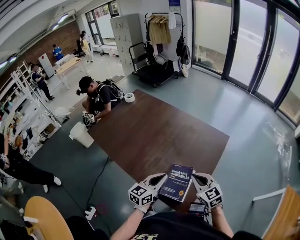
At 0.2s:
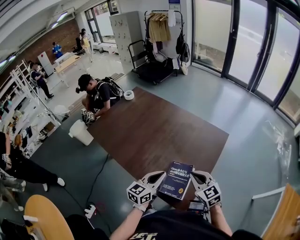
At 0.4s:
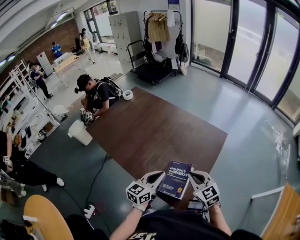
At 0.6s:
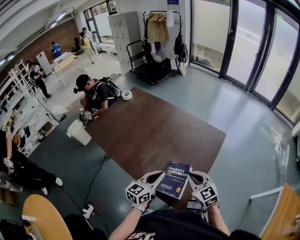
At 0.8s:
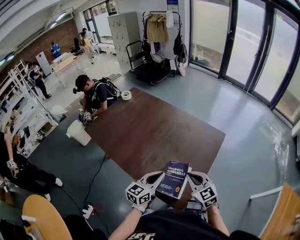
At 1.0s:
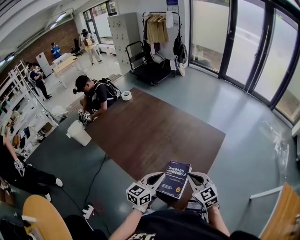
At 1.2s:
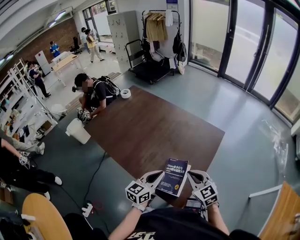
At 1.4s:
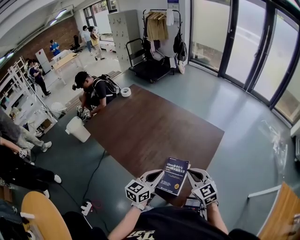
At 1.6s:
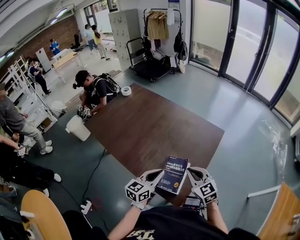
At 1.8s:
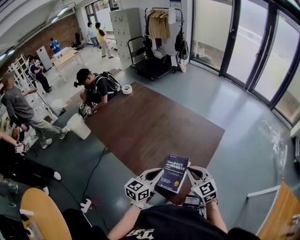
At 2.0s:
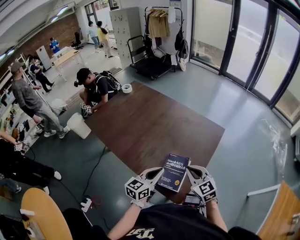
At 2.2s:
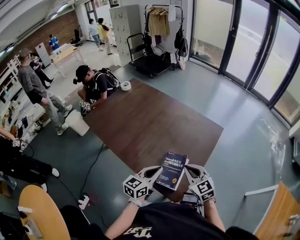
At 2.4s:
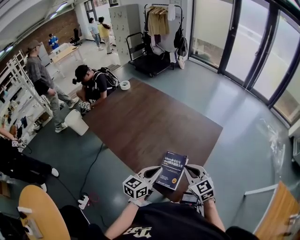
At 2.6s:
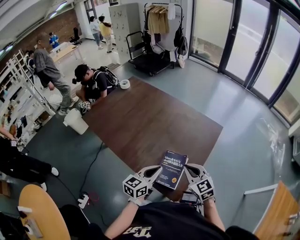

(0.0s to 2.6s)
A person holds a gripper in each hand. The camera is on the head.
0.0s - 2.6s: There are only small adjustments of the grippers.

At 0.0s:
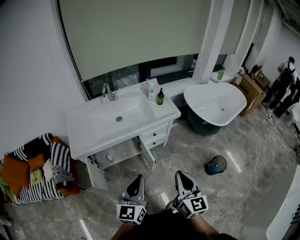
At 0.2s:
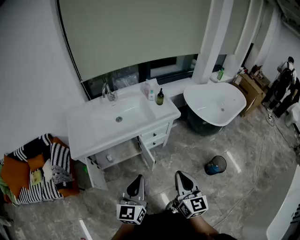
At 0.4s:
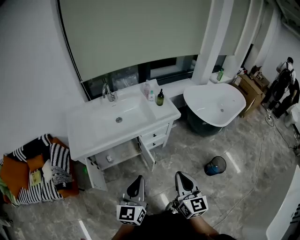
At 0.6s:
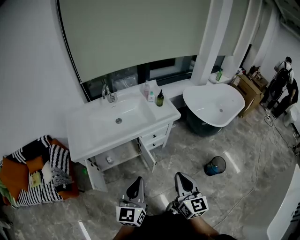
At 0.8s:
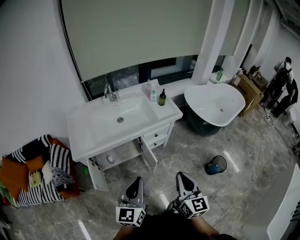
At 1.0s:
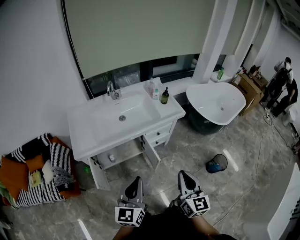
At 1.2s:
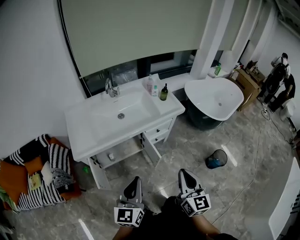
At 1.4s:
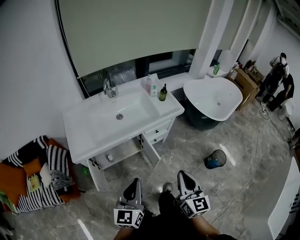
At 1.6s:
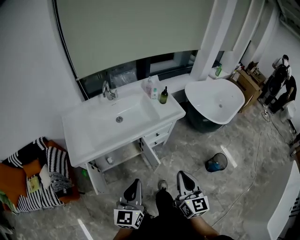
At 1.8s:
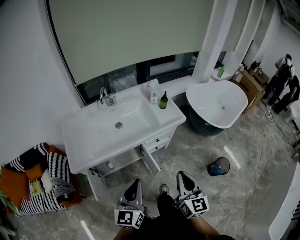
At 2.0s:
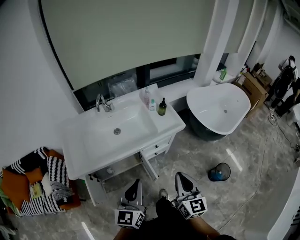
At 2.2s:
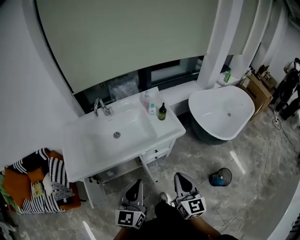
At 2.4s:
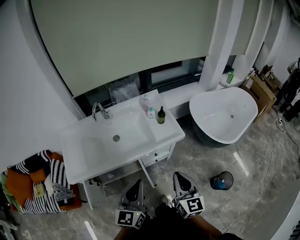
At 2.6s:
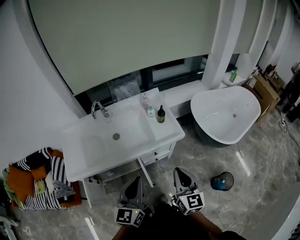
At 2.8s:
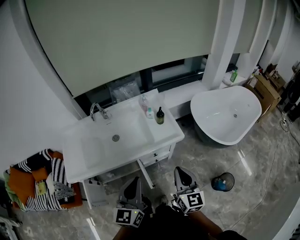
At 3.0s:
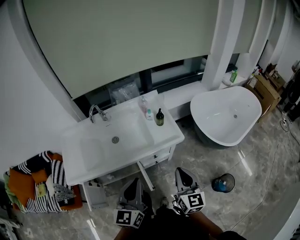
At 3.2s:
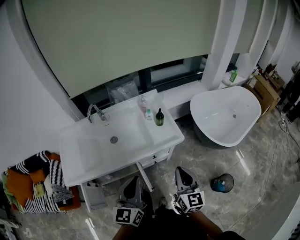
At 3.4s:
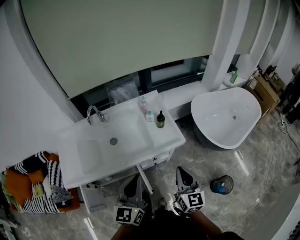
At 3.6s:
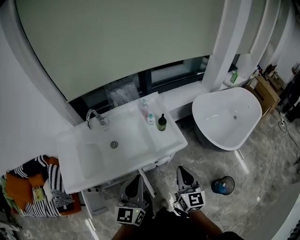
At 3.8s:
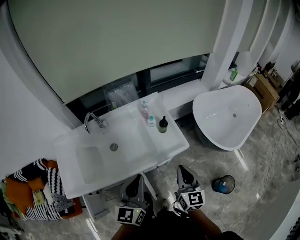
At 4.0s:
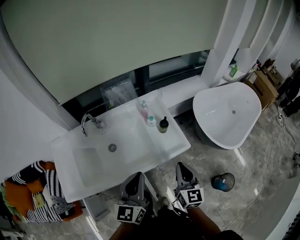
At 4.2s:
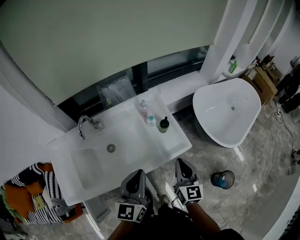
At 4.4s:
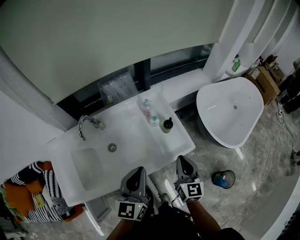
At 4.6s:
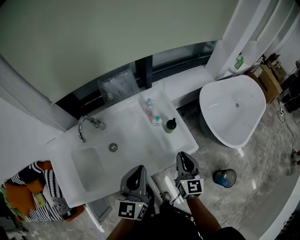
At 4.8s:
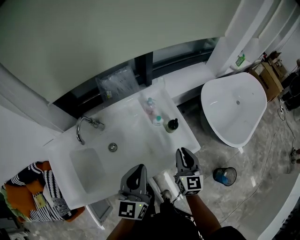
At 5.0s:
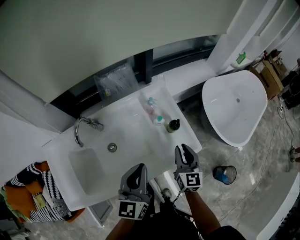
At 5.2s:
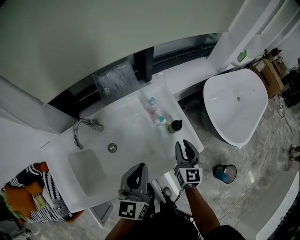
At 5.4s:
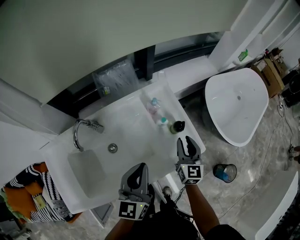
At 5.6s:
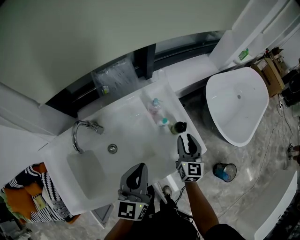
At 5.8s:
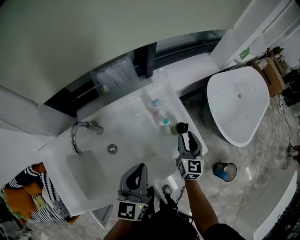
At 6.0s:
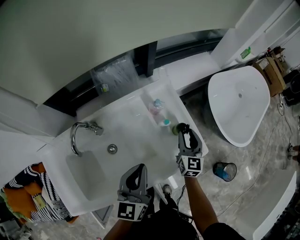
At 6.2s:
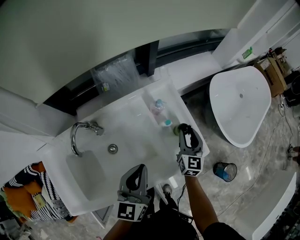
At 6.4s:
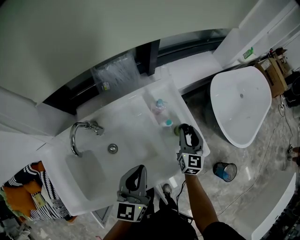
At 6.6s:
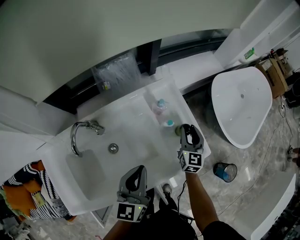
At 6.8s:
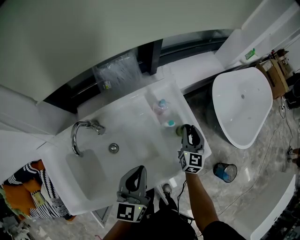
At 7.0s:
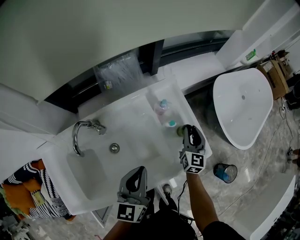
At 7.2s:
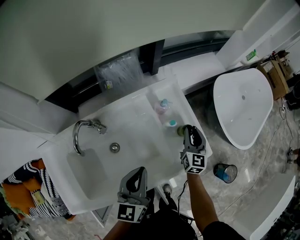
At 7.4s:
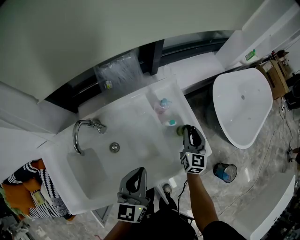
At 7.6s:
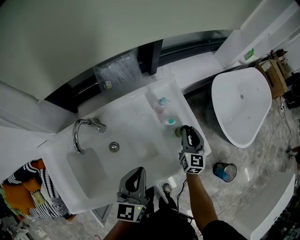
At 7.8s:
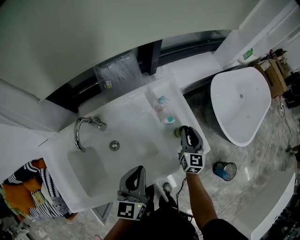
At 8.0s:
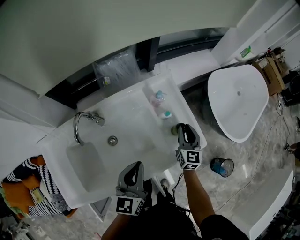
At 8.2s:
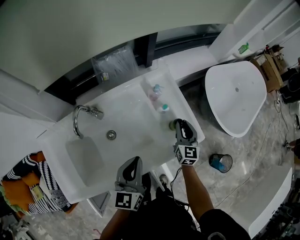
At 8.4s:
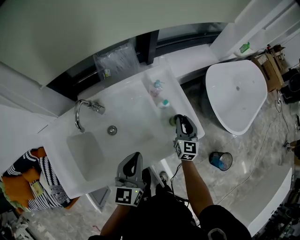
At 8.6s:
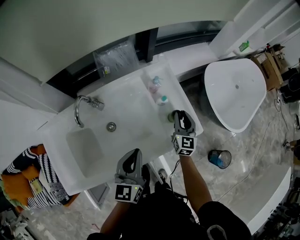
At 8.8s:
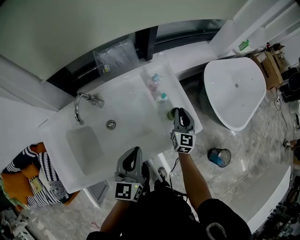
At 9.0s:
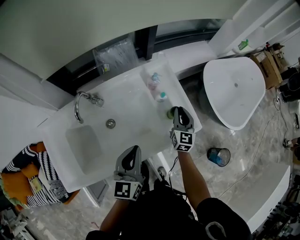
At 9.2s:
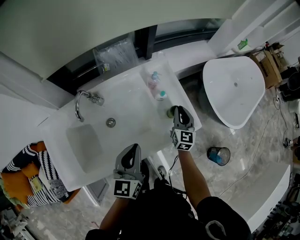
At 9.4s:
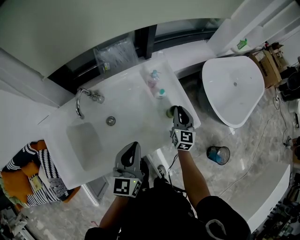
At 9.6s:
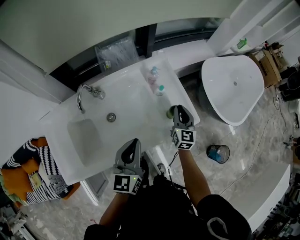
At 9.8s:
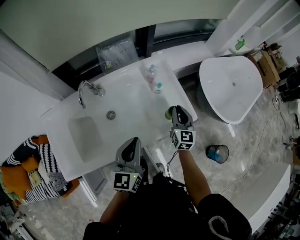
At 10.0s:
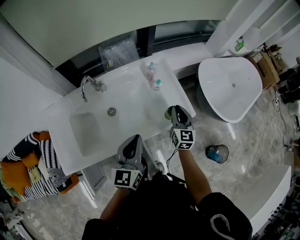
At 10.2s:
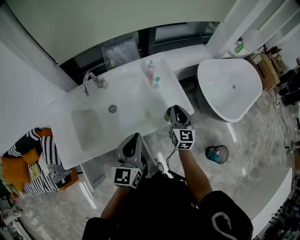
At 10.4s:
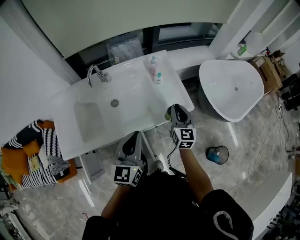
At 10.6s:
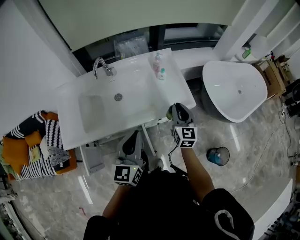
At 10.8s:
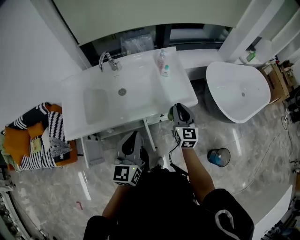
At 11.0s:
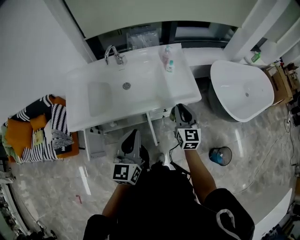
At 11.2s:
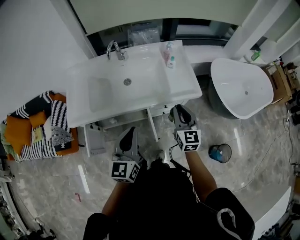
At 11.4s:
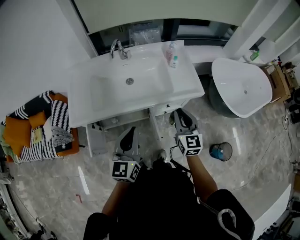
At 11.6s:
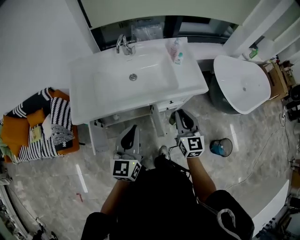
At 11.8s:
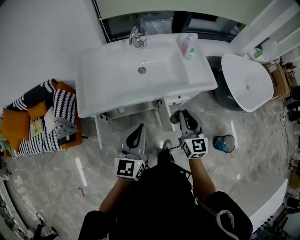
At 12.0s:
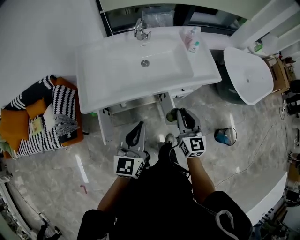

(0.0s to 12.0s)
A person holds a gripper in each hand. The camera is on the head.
0.0s - 1.6s: The two grippers go about 10 cm to the left.
1.6s - 3.0s: Both grippers travel together forward and to the right, about 25 cm.
3.0s - 4.4s: The grippers both shift forward by about 20 cm.
4.4s - 6.0s: The left gripper goes about 15 cm forward, downward and to the left; the right gripper shifts roughly 20 cm forward and downward, and opens up.
6.0s - 7.6s: The grippers make only small movements.
7.6s - 9.0s: The left gripper goes about 5 cm backward.
9.0s - 10.4s: The left gripper heads backward, upward and to the right, covering approximately 15 cm. The right gripper moves backward and upward, some 20 cm.
10.4s - 12.0s: The right gripper heads backward and to the left, covering about 30 cm; the left gripper heads to the left and backward, covering some 25 cm.

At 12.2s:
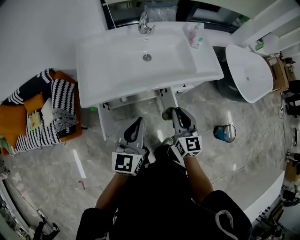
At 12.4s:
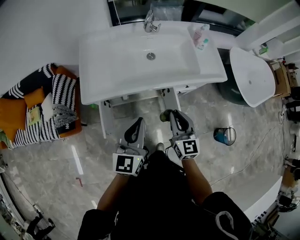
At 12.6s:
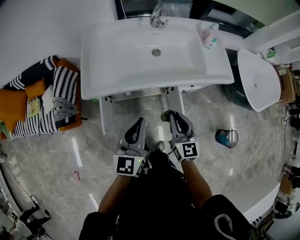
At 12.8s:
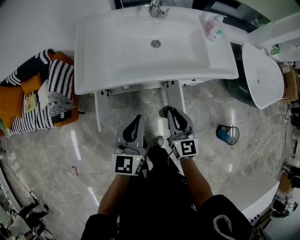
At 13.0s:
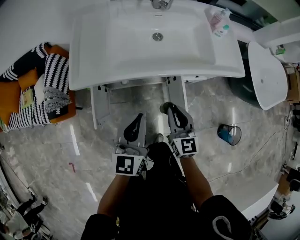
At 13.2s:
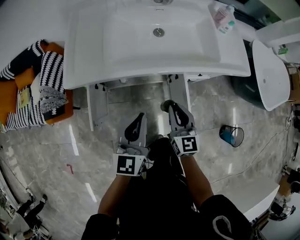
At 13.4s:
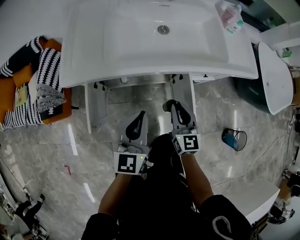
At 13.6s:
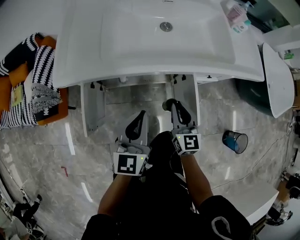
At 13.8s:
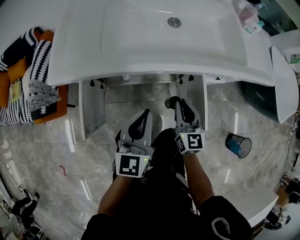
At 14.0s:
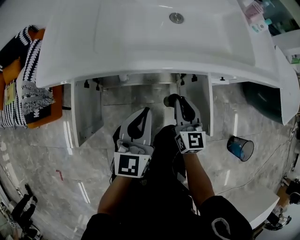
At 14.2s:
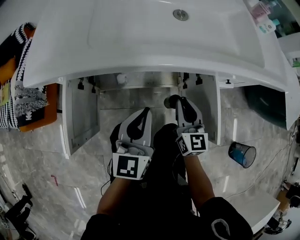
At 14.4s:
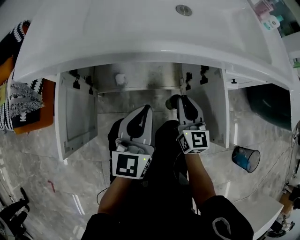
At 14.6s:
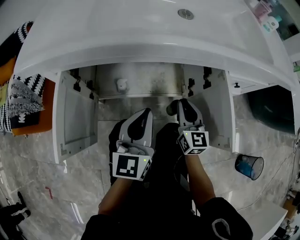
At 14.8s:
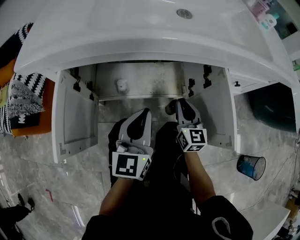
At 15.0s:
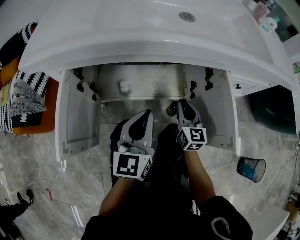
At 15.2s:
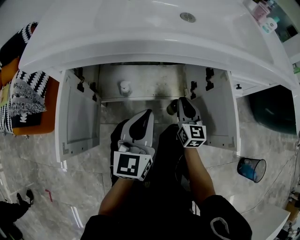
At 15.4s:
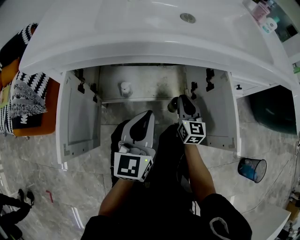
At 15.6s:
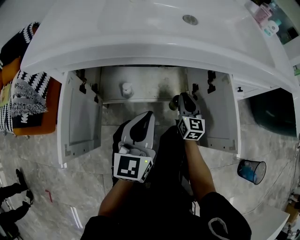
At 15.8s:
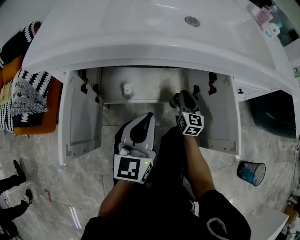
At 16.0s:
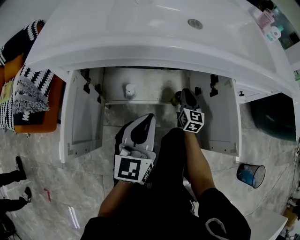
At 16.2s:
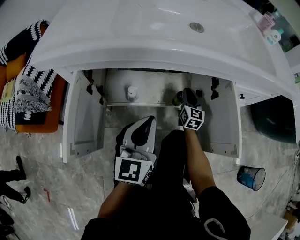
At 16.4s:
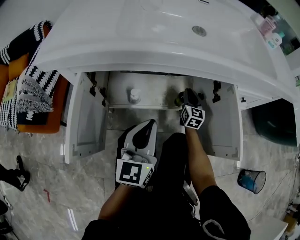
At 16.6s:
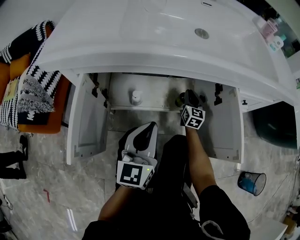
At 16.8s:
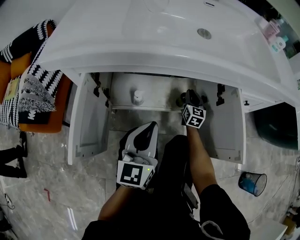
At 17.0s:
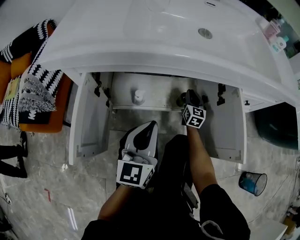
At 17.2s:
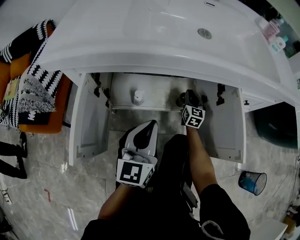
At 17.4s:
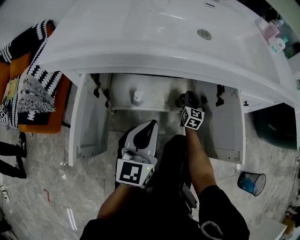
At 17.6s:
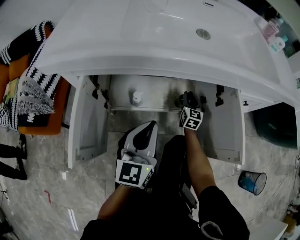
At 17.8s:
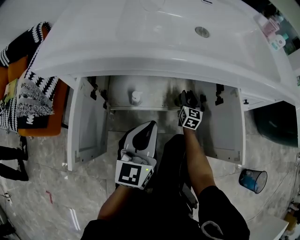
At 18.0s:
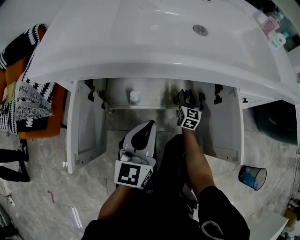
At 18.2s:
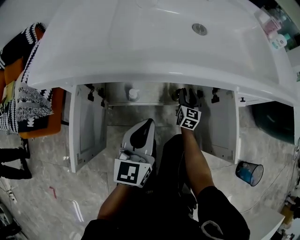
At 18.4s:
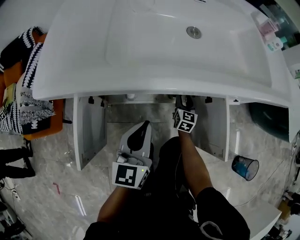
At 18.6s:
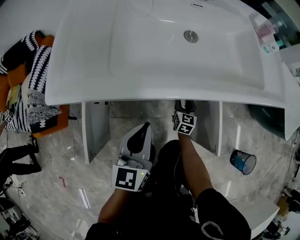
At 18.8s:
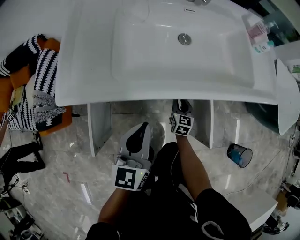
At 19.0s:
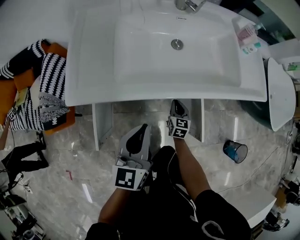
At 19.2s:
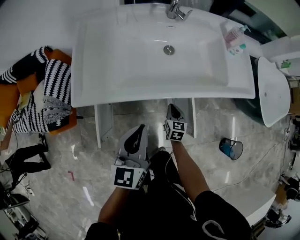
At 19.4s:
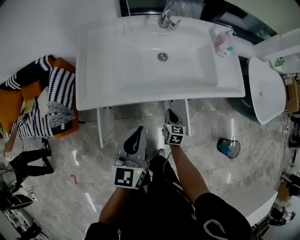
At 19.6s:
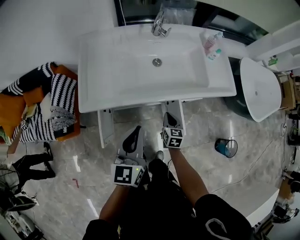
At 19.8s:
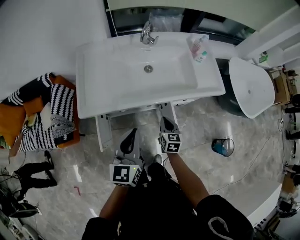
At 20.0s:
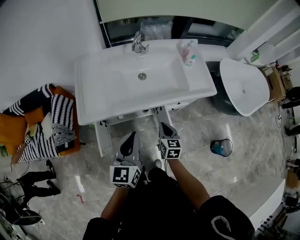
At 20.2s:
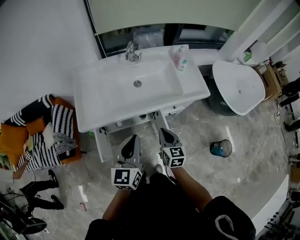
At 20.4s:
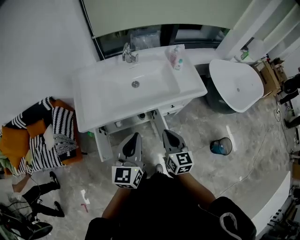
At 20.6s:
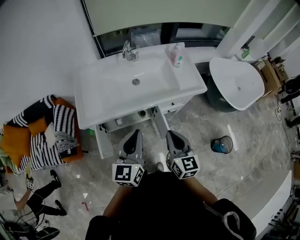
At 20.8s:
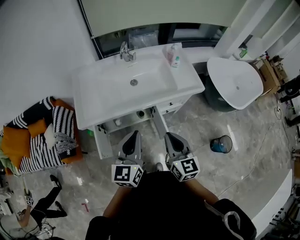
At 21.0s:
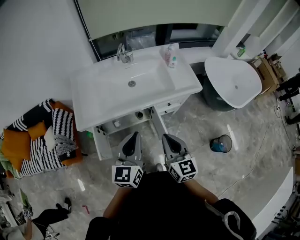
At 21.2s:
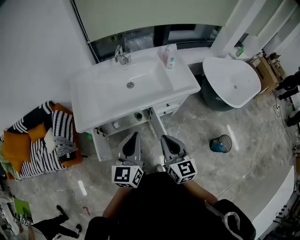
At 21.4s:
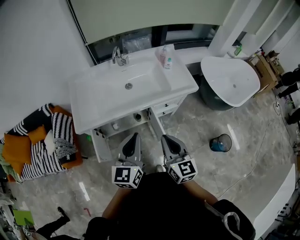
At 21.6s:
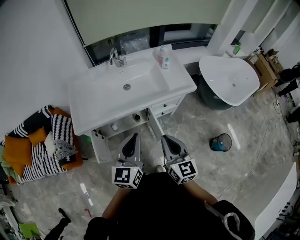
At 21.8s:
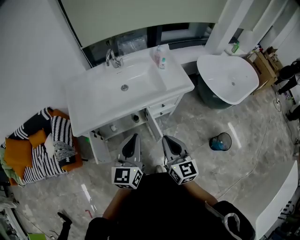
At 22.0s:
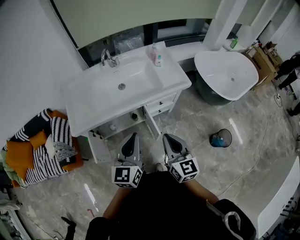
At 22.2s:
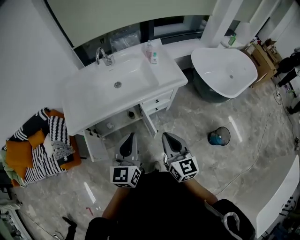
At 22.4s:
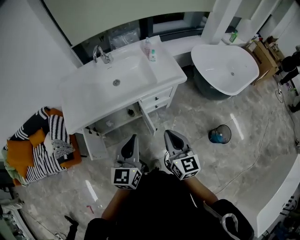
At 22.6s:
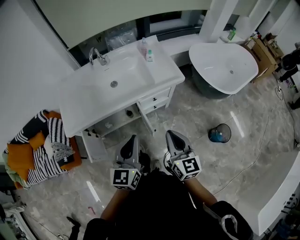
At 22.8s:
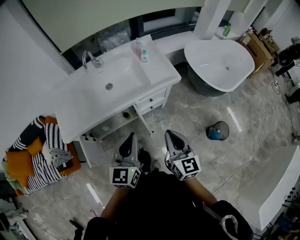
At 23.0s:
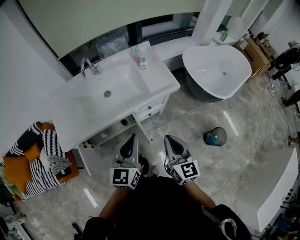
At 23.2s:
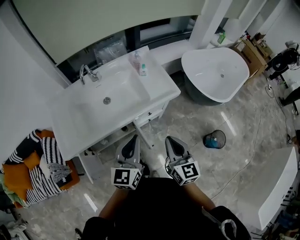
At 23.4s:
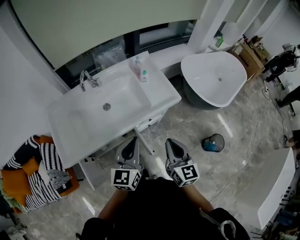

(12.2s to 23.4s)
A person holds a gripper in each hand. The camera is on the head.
12.2s - 13.8s: The grippers both shift downward by about 30 cm.
13.8s - 15.4s: Both grippers travel together downward, approximately 20 cm.
15.4s - 17.0s: The right gripper goes some 15 cm forward and downward.
17.0s - 18.6s: The left gripper moves upward, approximately 15 cm. The right gripper goes some 10 cm upward and backward, and opens up.
18.6s - 20.2s: Both grippers travel together upward, about 40 cm. The right gripper closes.
20.2s - 21.8s: The left gripper goes approximately 10 cm to the right and backward. The right gripper goes about 20 cm upward, backward and to the right.
21.8s - 23.4s: The left gripper goes approximately 15 cm forward. Meanwhile the right gripper travels forward and to the right by roughly 15 cm.
